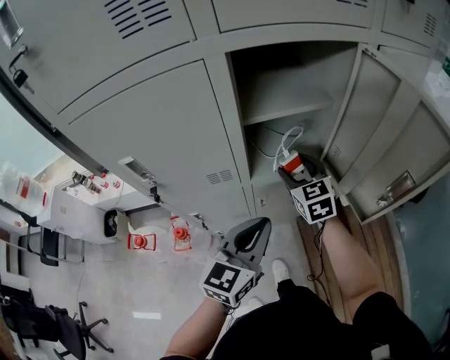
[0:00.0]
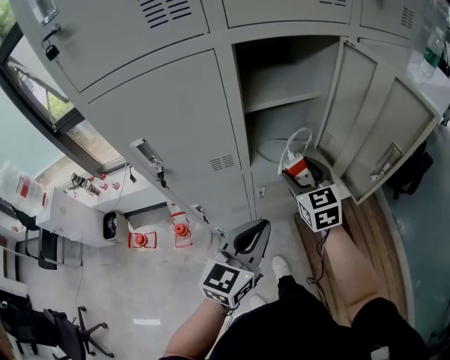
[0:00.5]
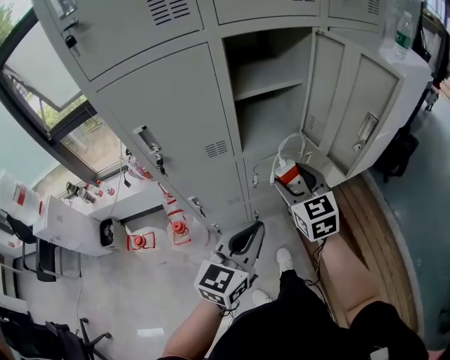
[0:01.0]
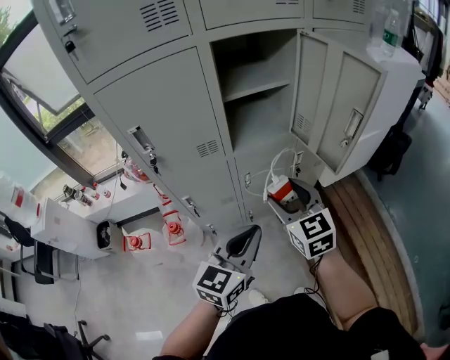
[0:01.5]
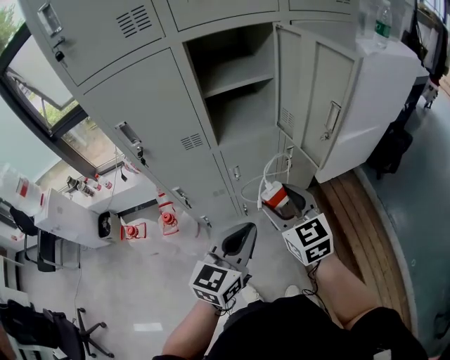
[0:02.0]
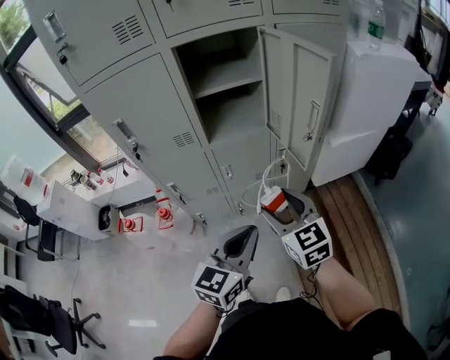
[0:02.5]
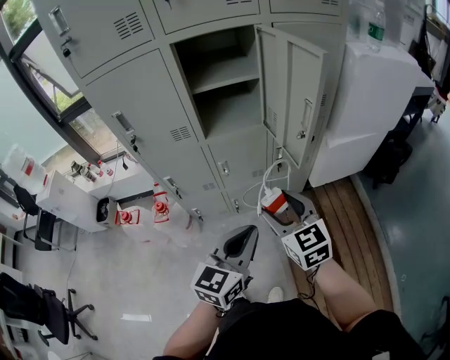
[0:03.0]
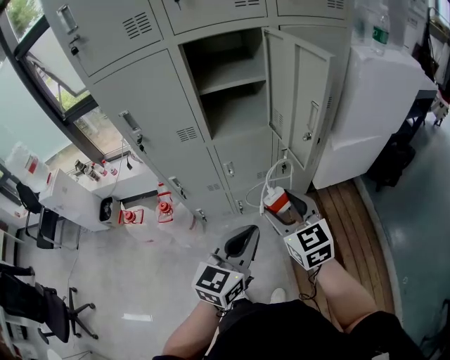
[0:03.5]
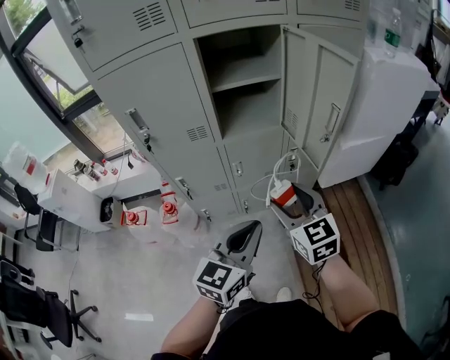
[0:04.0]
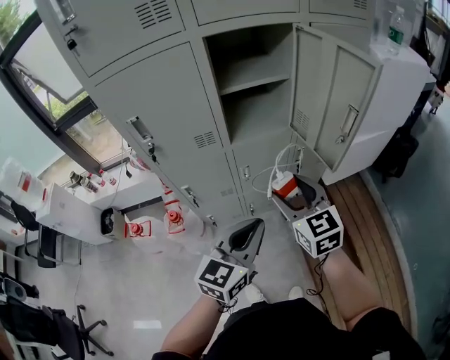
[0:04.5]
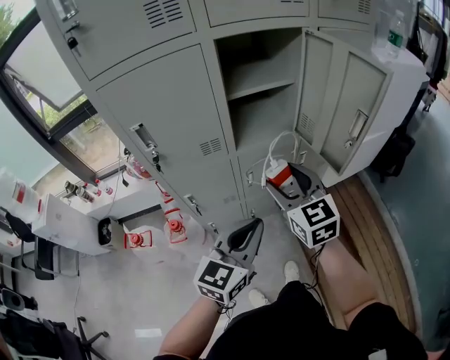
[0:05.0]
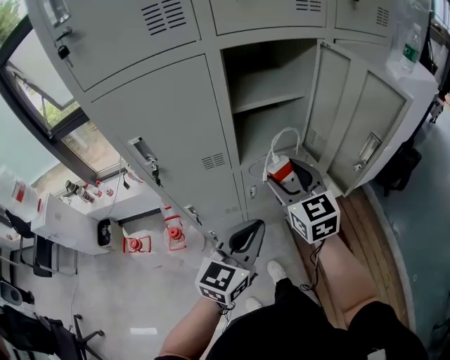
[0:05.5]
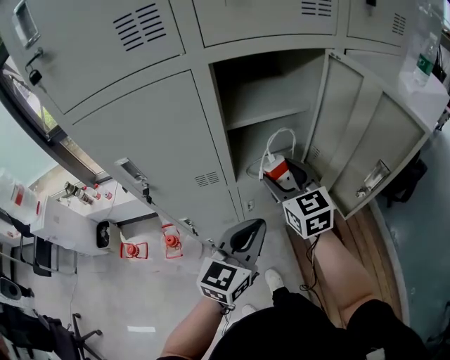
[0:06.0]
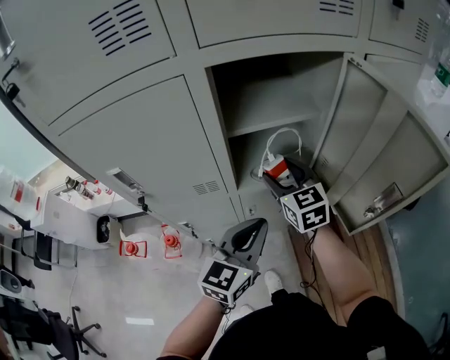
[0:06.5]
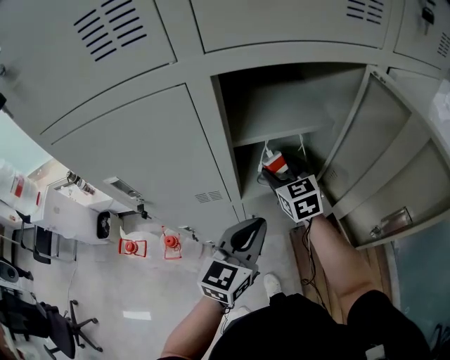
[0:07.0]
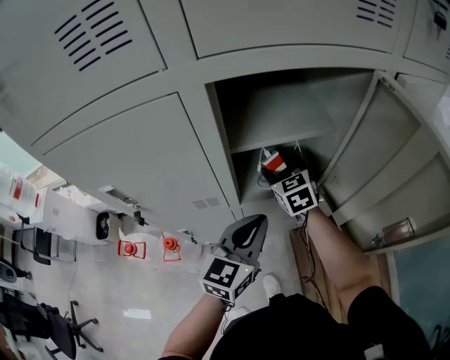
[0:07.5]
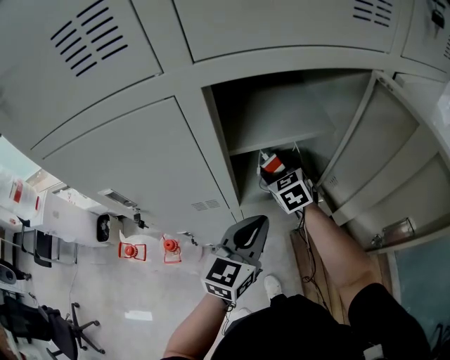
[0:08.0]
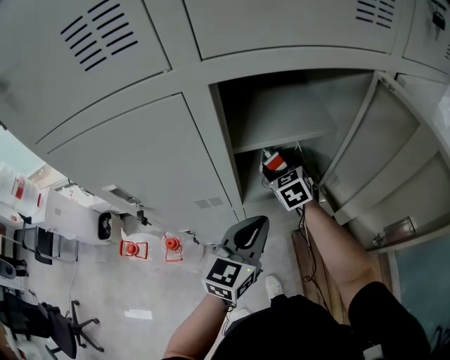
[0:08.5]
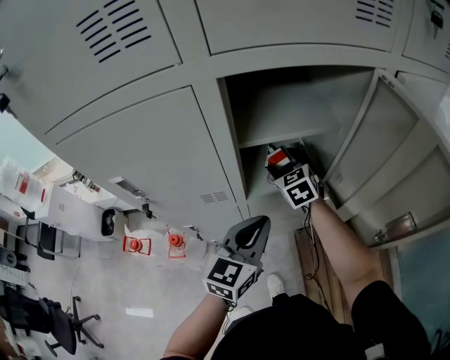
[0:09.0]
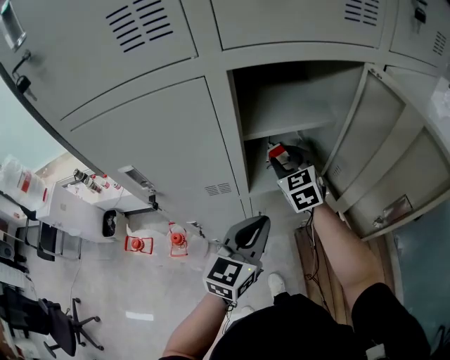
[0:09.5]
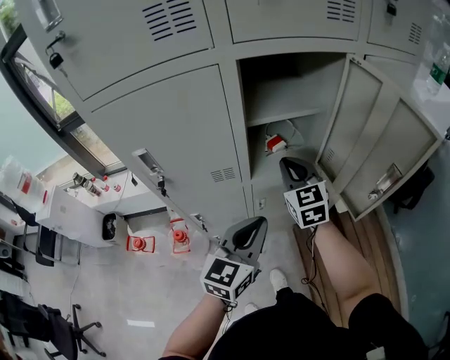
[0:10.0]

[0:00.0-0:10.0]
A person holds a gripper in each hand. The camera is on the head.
0:00.0 to 0:02.0: The right gripper heads backward, covering approximately 30 cm. Meanwhile the left gripper goes some 20 cm backward and to the right.
0:04.0 to 0:06.0: The grippers both shift forward and to the left by some 20 cm.
0:06.0 to 0:08.0: The right gripper heads forward and downward, covering about 20 cm, and rotates approximately 20 degrees, while the left gripper is displaced forward by approximately 10 cm.
0:08.0 to 0:10.0: The left gripper heads backward, covering some 10 cm. Meanwhile the right gripper heads backward and upward, covering approximately 20 cm, rotates some 20 degrees, and closes up.

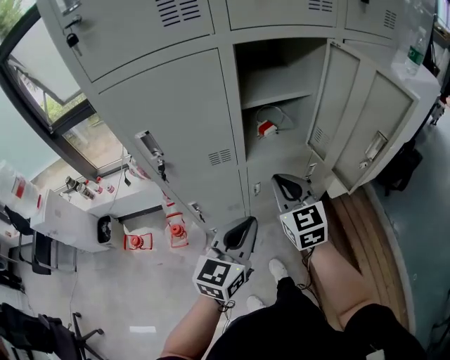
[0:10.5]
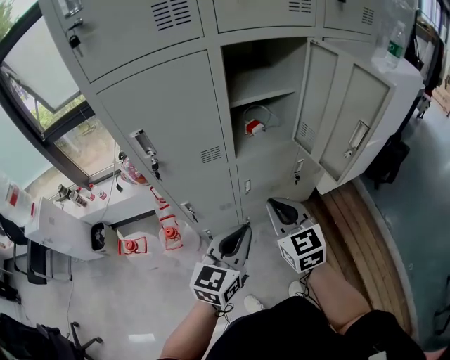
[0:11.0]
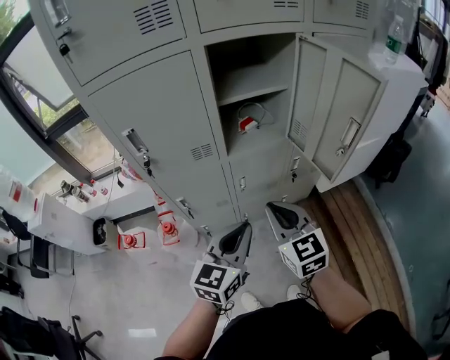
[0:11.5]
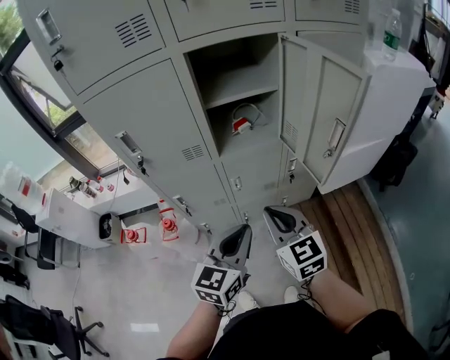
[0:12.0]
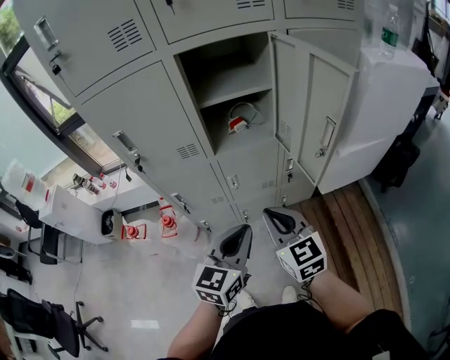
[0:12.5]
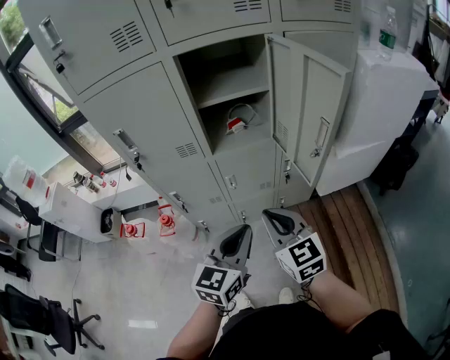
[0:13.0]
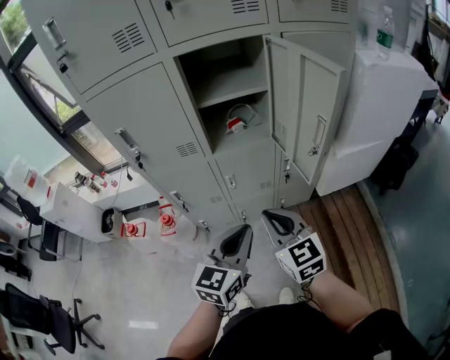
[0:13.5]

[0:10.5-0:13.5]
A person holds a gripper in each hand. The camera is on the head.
0:10.5 to 0:12.0: The left gripper is displaced to the right and backward by some 10 cm; the right gripper moves backward and to the right, approximately 15 cm.
0:12.0 to 0:13.5: The left gripper changes place by approximately 5 cm.

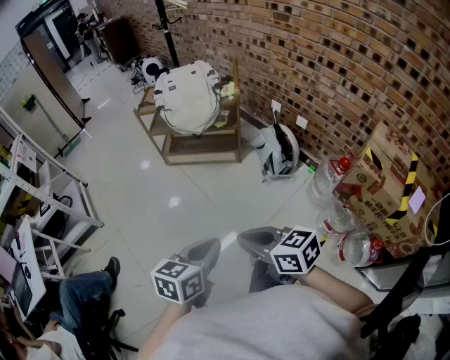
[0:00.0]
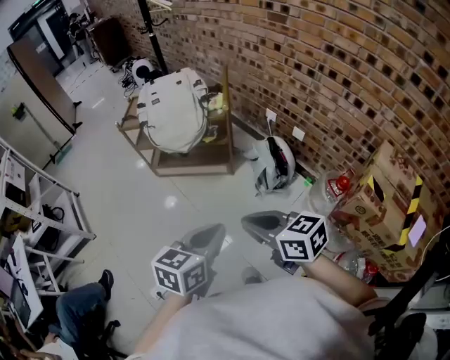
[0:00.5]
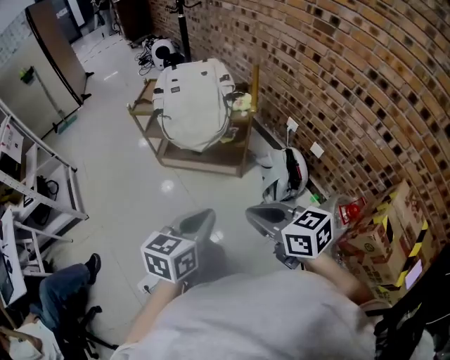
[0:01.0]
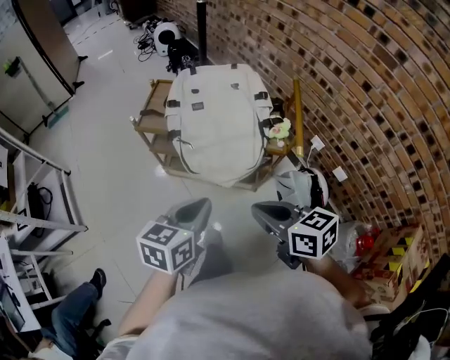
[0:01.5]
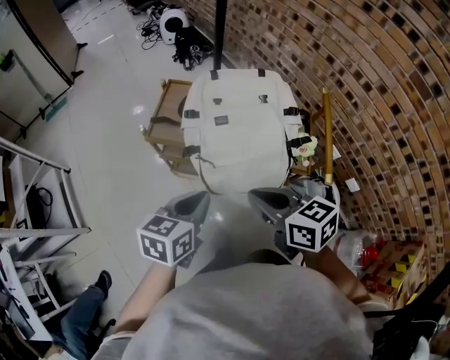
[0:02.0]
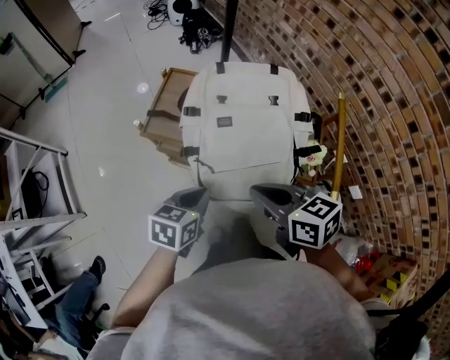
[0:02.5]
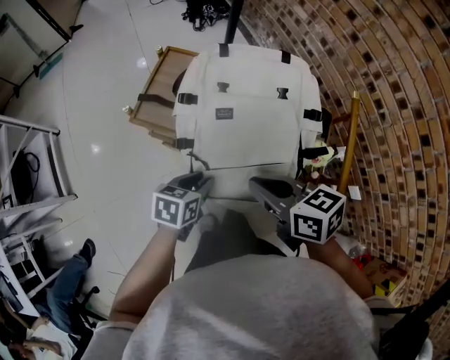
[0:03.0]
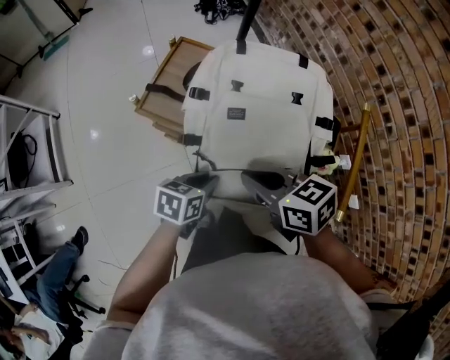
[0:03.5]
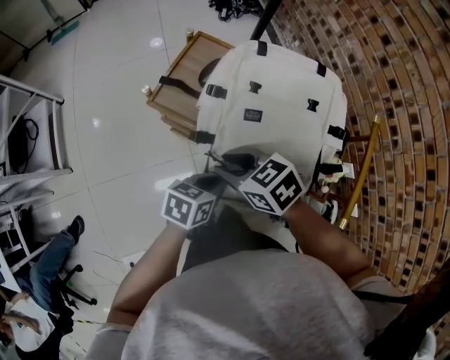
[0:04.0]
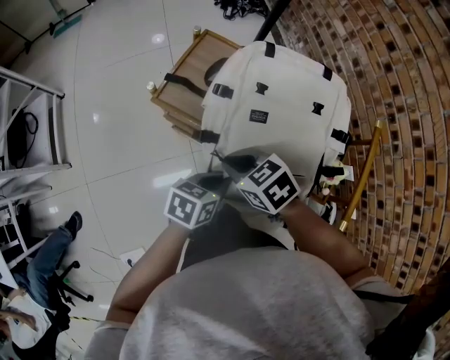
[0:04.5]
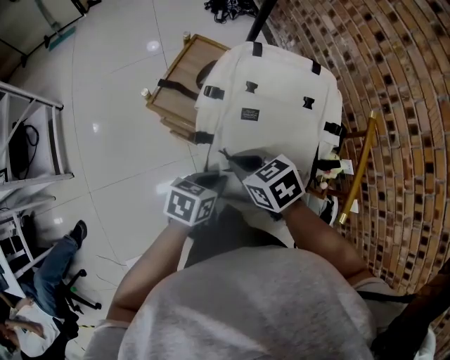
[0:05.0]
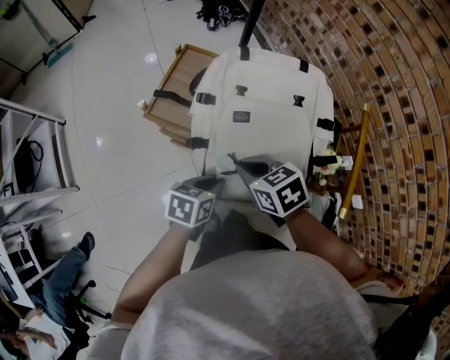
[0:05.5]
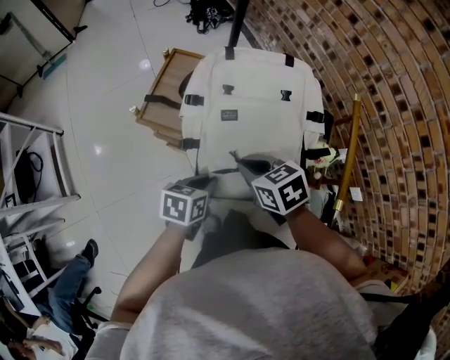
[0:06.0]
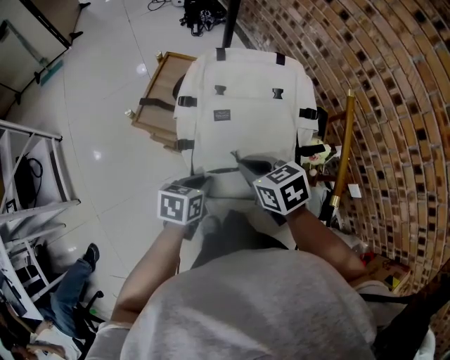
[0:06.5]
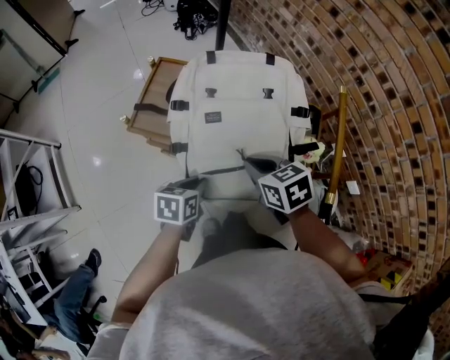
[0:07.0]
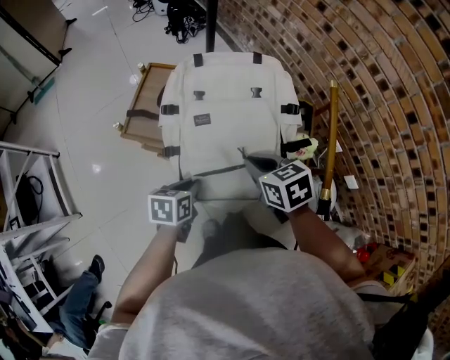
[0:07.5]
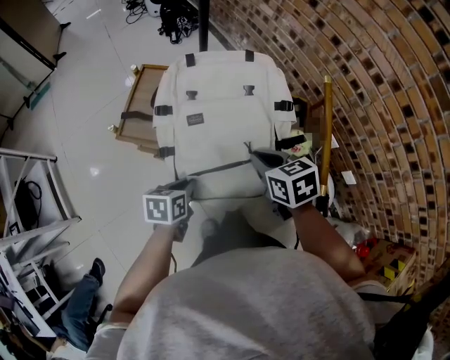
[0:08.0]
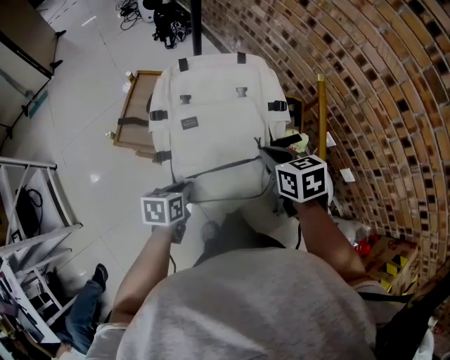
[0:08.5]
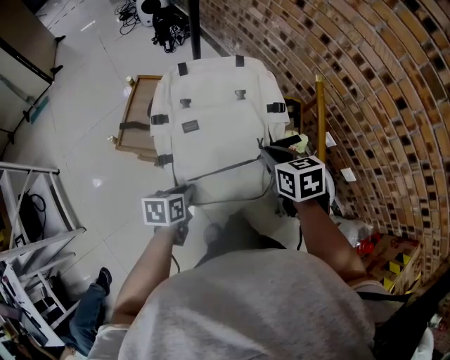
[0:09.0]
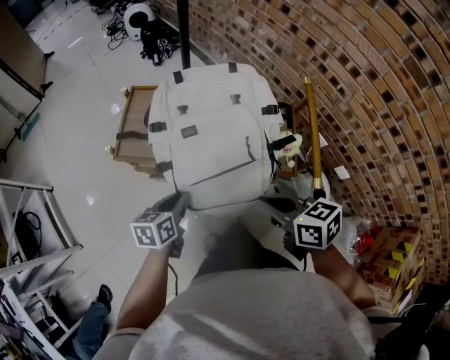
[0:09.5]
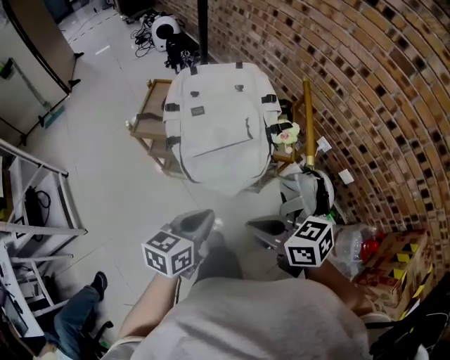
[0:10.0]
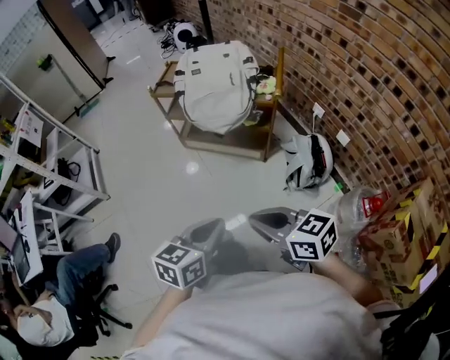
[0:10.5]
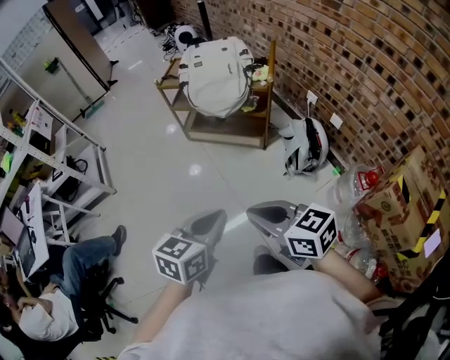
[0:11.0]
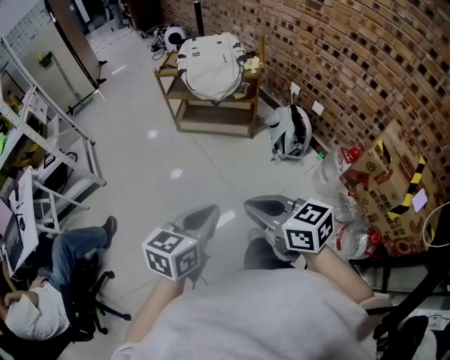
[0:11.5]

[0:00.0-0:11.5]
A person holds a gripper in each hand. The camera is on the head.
0:00.0 to 0:02.0: The two grippers travel together, forward, roughly 70 cm.
0:02.0 to 0:04.0: The right gripper ends up roughly 20 cm from where it was, rotates about 40 degrees, and opens up; the left gripper moves downward, approximately 15 cm.
0:04.0 to 0:06.0: The right gripper ends up about 10 cm from where it was, changes its angle by about 20 degrees, and closes.
0:06.0 to 0:07.5: The right gripper travels to the right by roughly 10 cm.
0:07.5 to 0:09.5: The right gripper moves backward and upward, approximately 10 cm.
0:09.5 to 0:11.5: Both grippers are carried backward, approximately 70 cm. The left gripper changes its angle by approximately 20 degrees, while the right gripper swivels roughly 20 degrees.

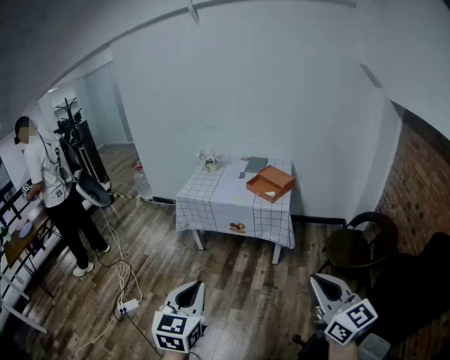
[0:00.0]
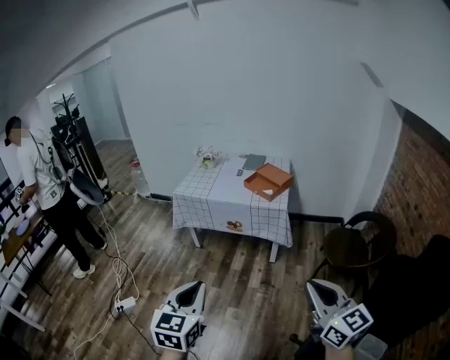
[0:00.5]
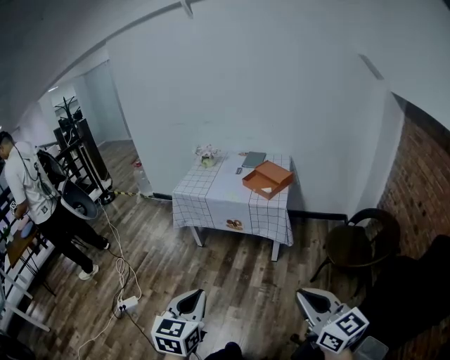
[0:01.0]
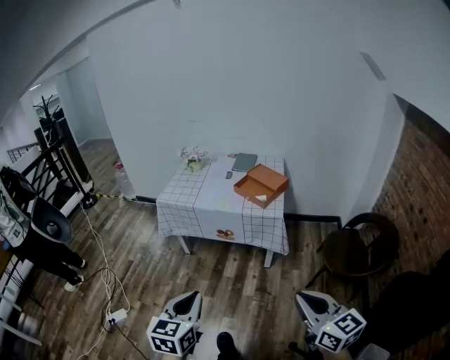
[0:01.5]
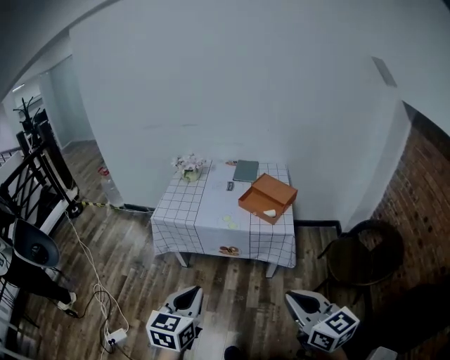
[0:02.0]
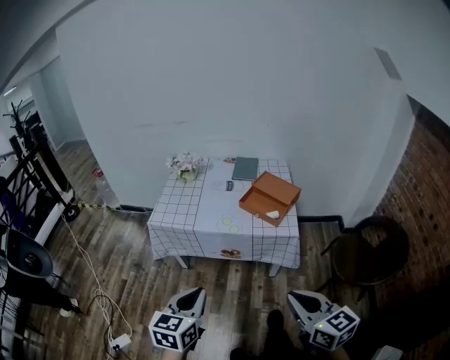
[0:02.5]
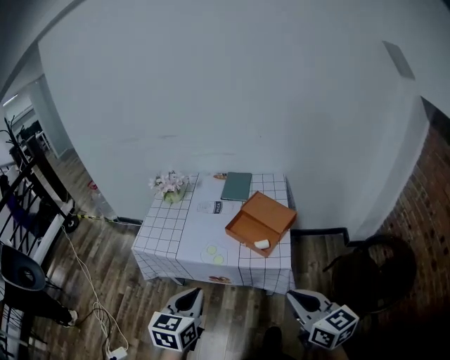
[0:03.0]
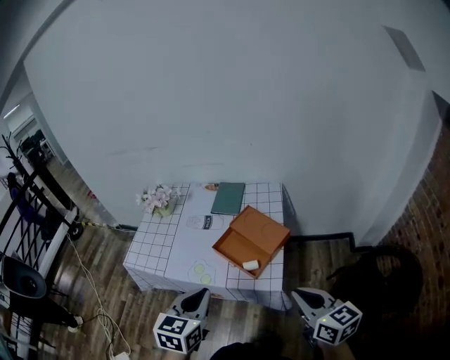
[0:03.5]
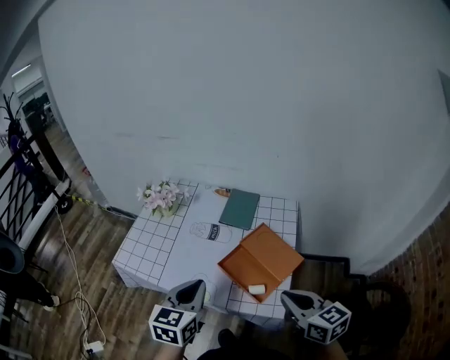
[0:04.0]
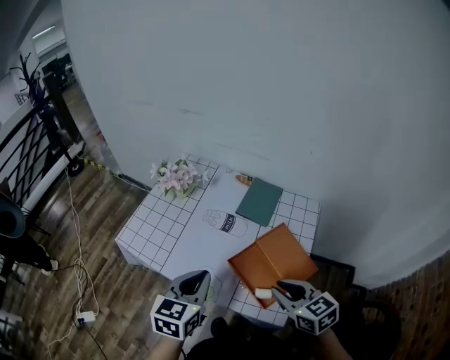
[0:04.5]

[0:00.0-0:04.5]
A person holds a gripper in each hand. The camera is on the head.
0:00.0 to 0:02.0: The grippers both shift forward by approximately 30 cm.
0:02.0 to 0:04.5: Both grippers are carried forward, approximately 50 cm. The right gripper turns by approximately 30 degrees.
